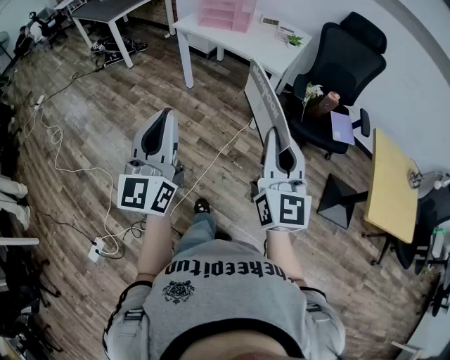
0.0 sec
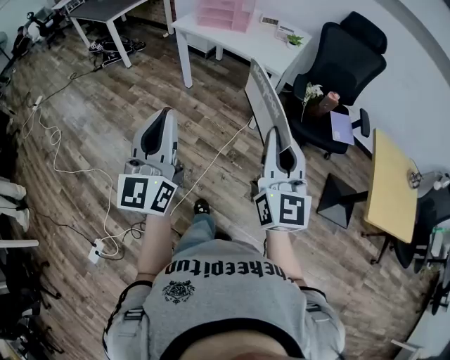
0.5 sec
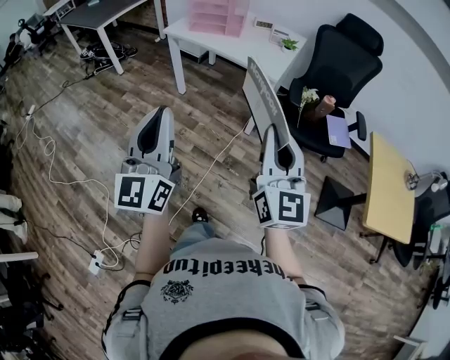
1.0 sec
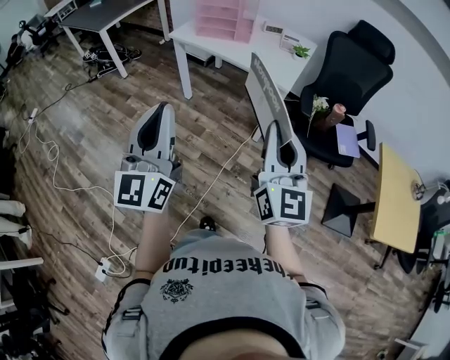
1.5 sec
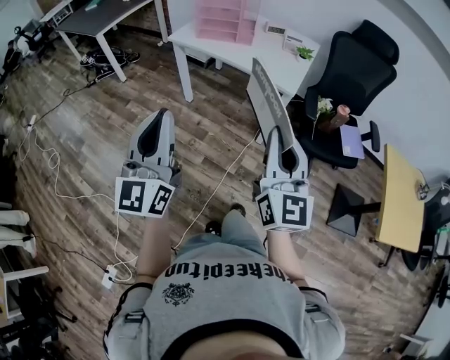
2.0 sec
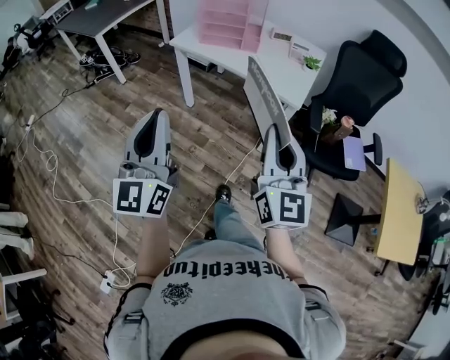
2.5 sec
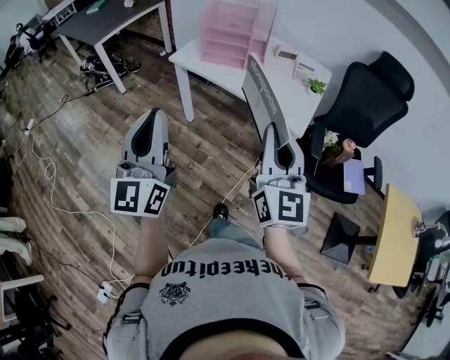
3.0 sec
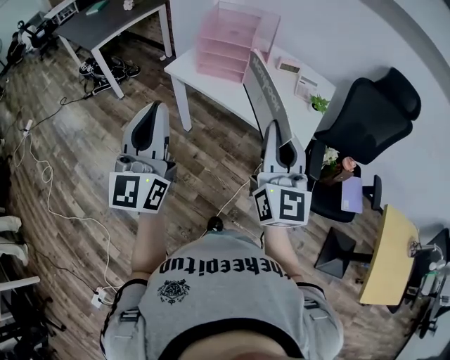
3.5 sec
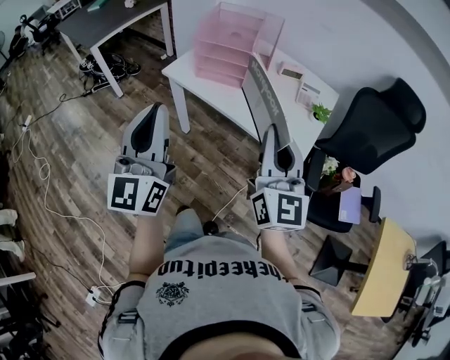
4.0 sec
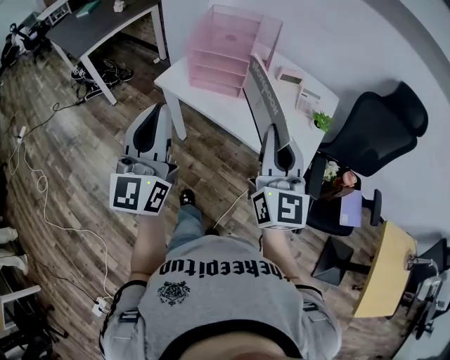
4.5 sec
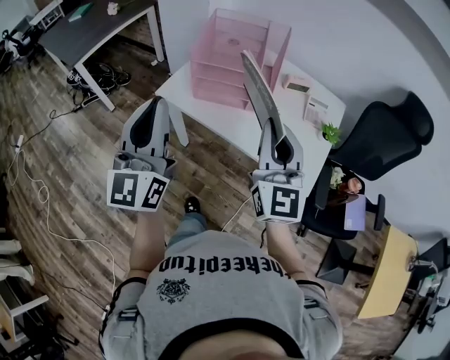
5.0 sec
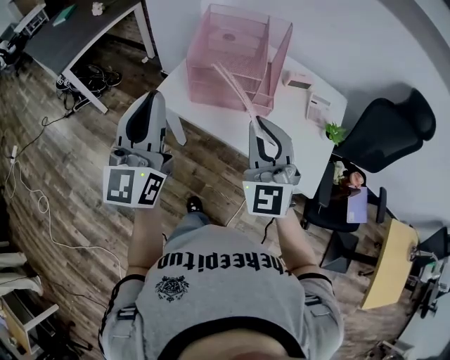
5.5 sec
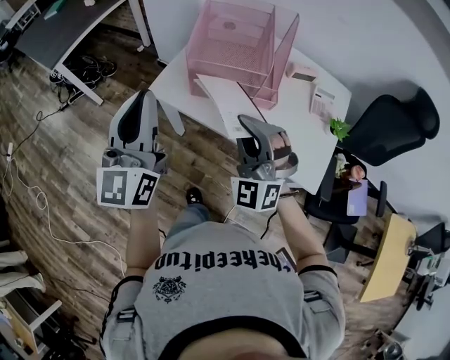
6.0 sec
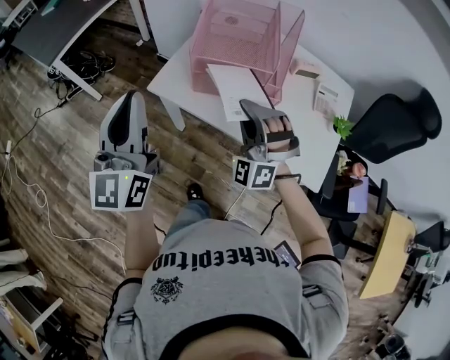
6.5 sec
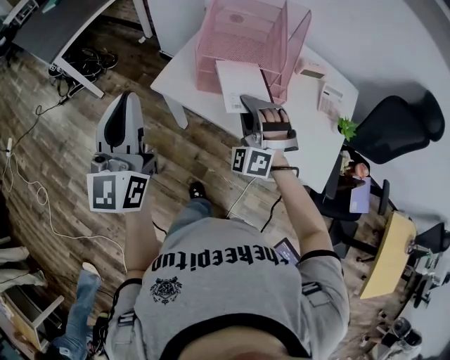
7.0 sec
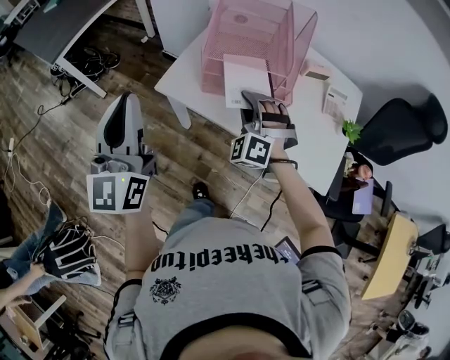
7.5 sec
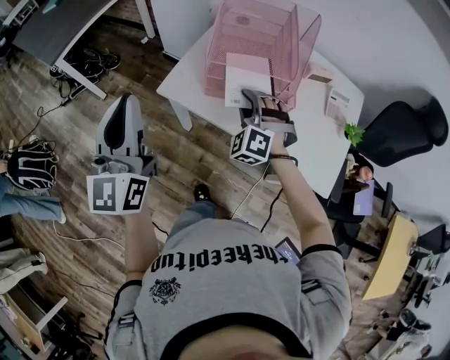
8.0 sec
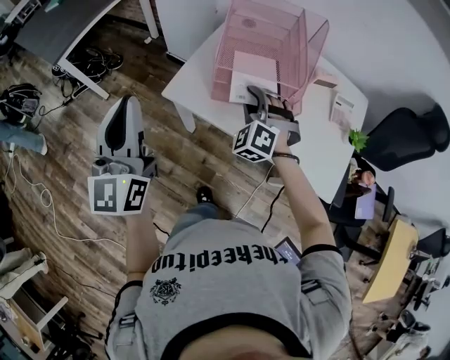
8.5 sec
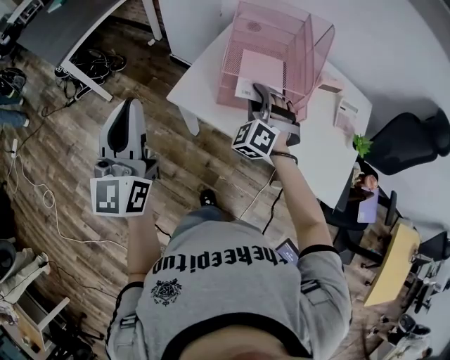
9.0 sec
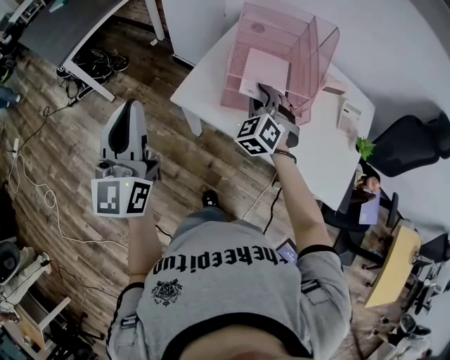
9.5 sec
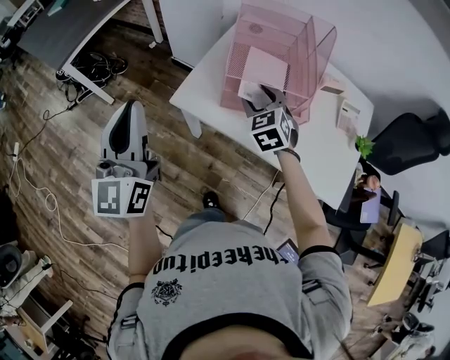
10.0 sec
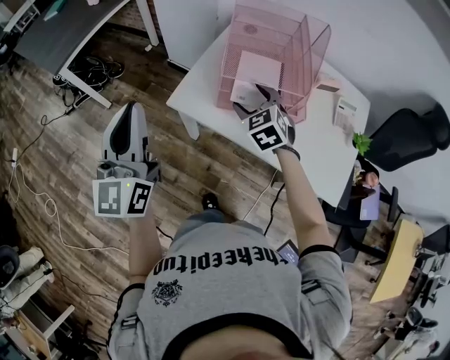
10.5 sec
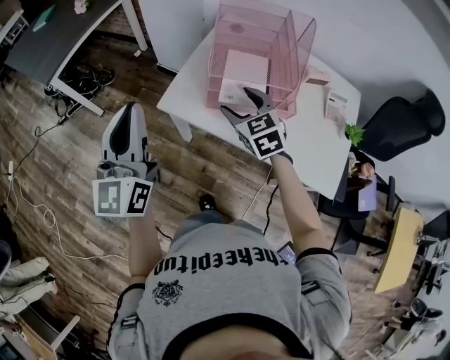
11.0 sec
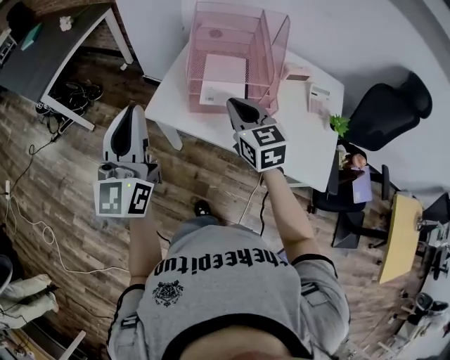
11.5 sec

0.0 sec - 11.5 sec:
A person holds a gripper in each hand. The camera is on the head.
0.0 sec - 2.0 sec: The two grippers go roughly 20 cm forward and to the left.
2.0 sec - 4.0 sec: Both grippers move forward, about 35 cm.
4.0 sec - 6.0 sec: The right gripper goes approximately 30 cm forward, to the left and downward, and rotates around the line of its fingers by some 60 degrees, counterclockwise from behind. The left gripper goes roughly 30 cm forward.
6.0 sec - 7.5 sec: The left gripper travels to the left by some 5 cm, while the right gripper shifts roughly 15 cm forward and downward, and rotates about 30 degrees.
7.5 sec - 9.5 sec: The right gripper shifts roughly 10 cm forward, and rotates some 20 degrees. Meanwhile the left gripper is displaced to the left by about 5 cm.
9.5 sec - 11.5 sec: The left gripper shifts some 5 cm to the right. The right gripper moves backward and upward, approximately 10 cm, rotates around the line of its fingers by roughly 40 degrees, clockwise from behind, and opens, then closes once more.

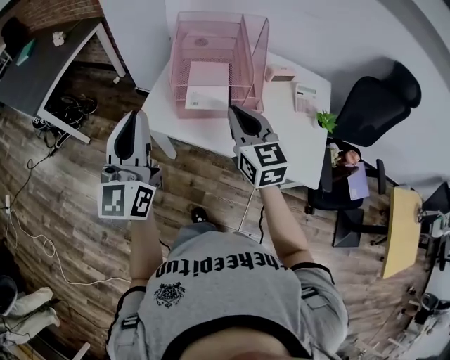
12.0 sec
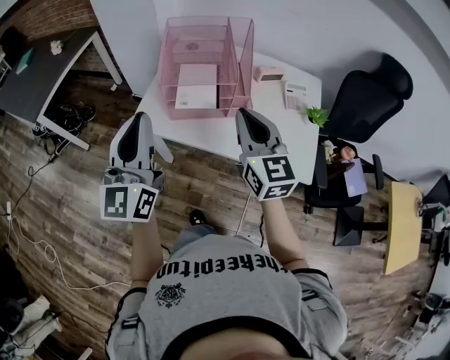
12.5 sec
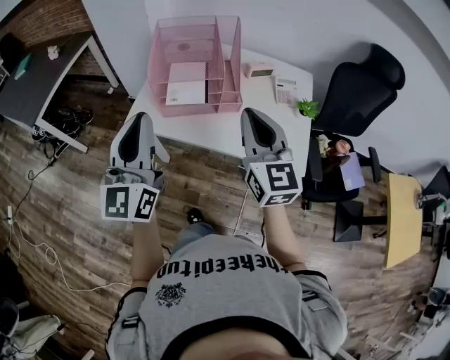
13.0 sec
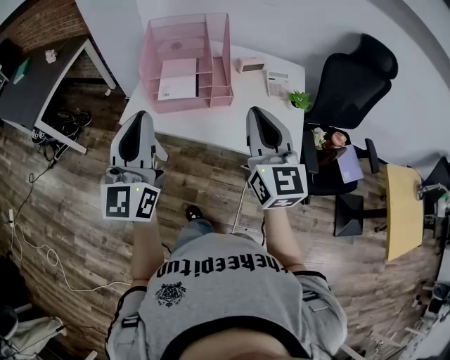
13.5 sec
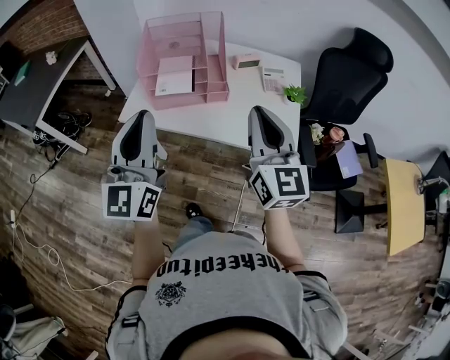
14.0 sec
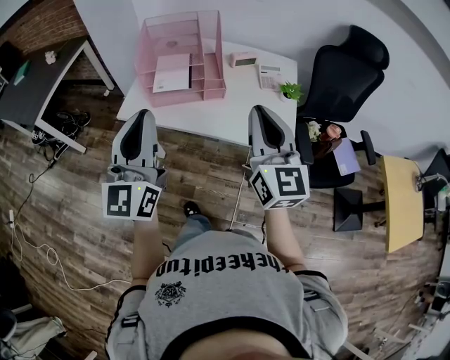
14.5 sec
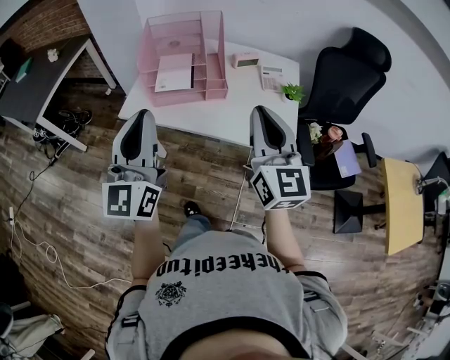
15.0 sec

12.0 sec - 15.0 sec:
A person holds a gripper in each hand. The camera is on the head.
12.0 sec - 13.5 sec: The right gripper heads backward, to the right and upward, covering some 20 cm; the left gripper heads to the right and backward, covering about 15 cm.
13.5 sec - 15.0 sec: The right gripper goes about 5 cm backward. The left gripper moves about 5 cm.

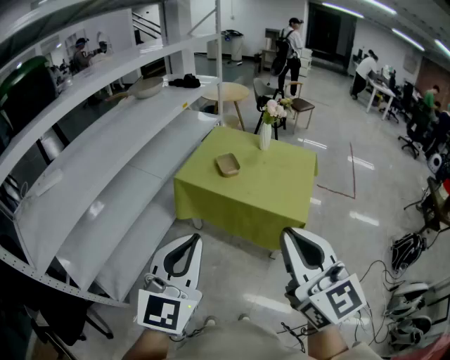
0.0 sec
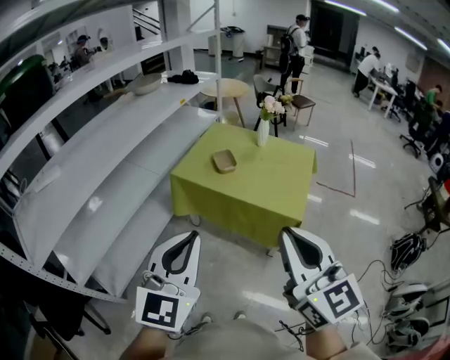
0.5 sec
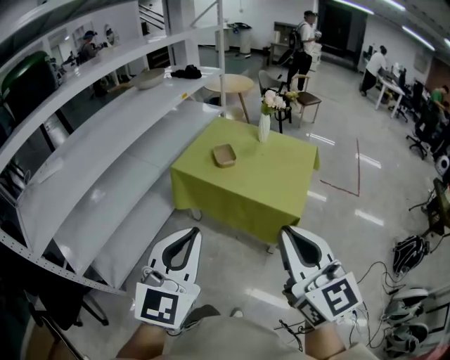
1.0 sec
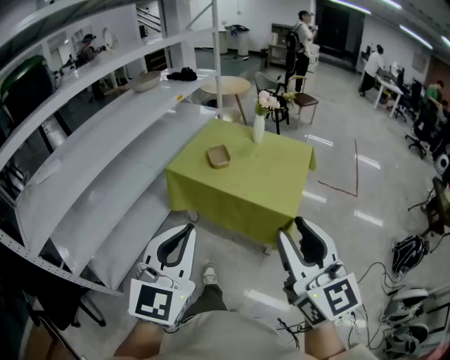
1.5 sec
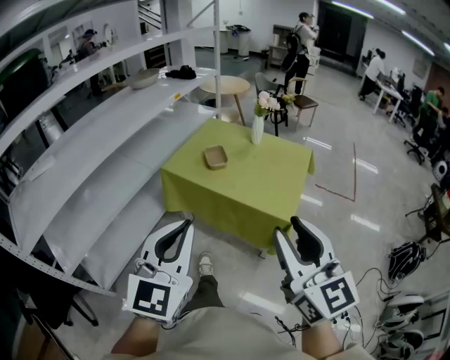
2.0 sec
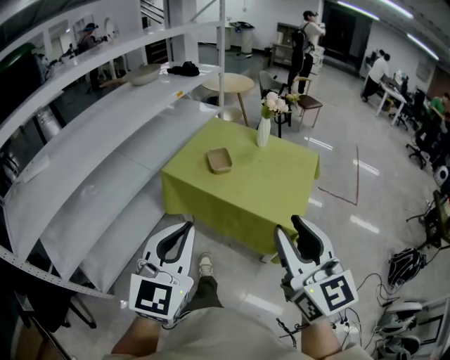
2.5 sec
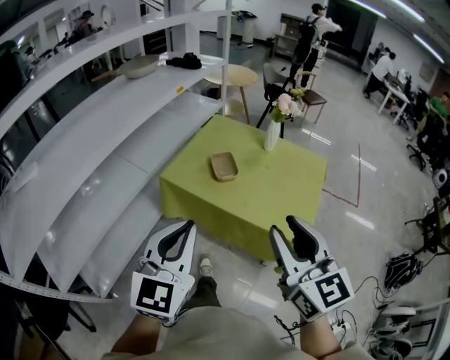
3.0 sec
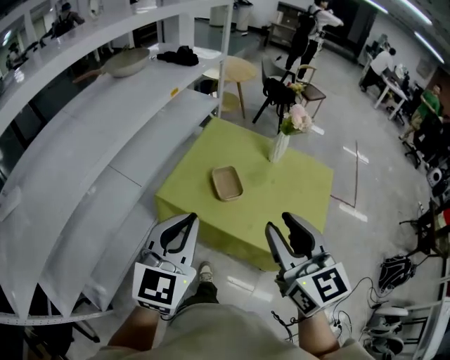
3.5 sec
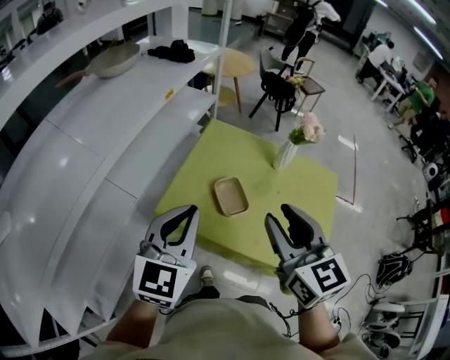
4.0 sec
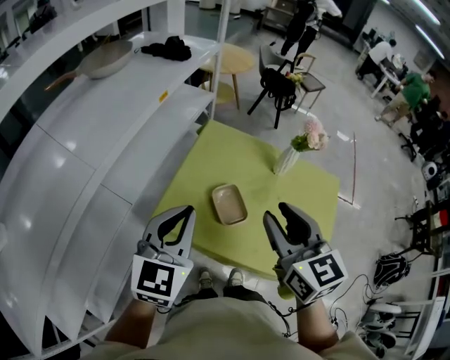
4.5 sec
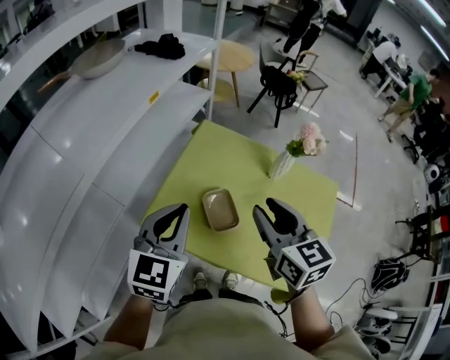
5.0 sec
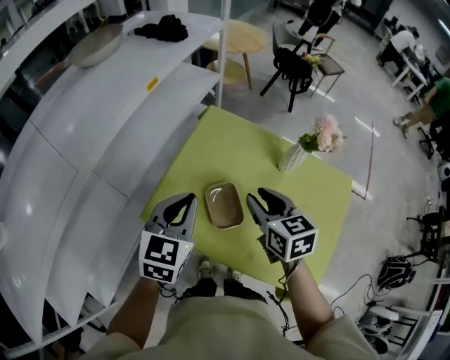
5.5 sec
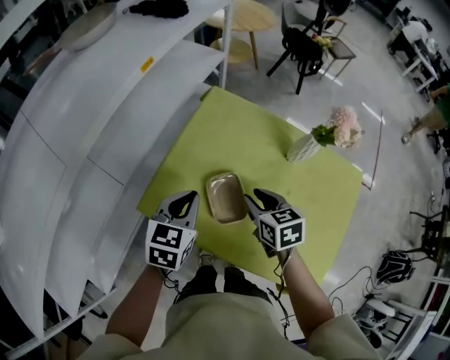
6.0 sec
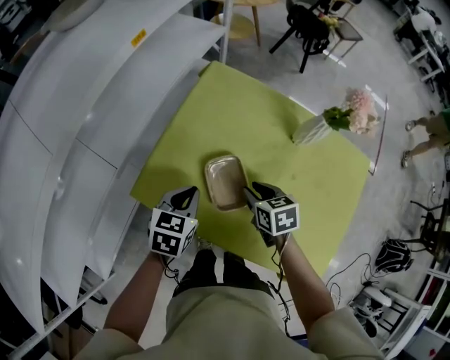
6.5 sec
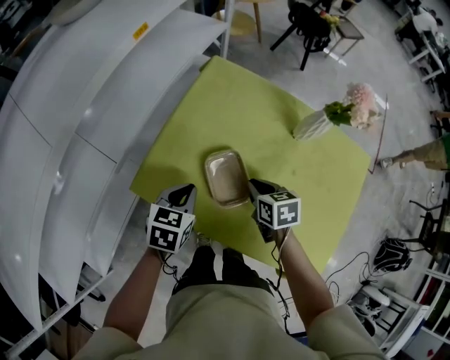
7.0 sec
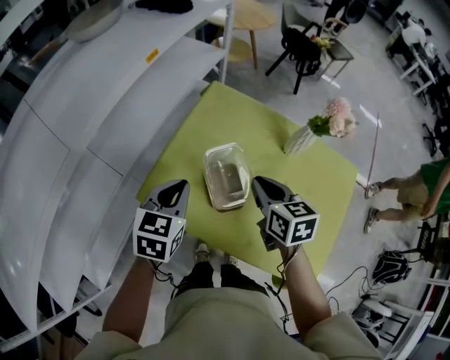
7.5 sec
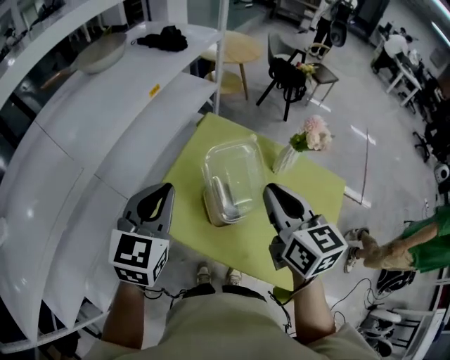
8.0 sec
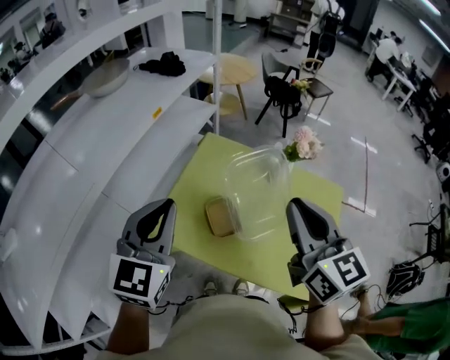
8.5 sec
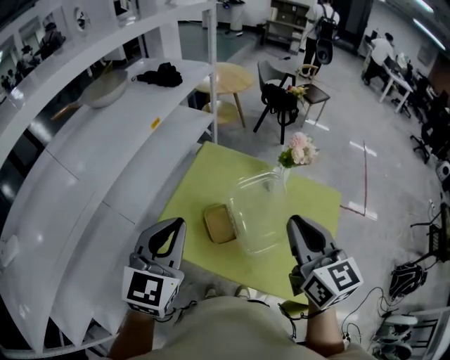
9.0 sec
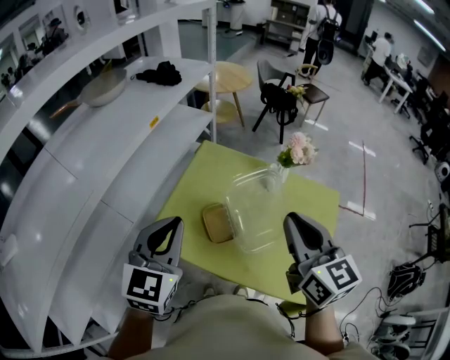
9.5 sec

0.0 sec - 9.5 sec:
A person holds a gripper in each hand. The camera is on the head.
0.0 sec - 2.0 sec: Both grippers move to the right, roughly 10 cm. The right gripper opens its fingers.
2.0 sec - 4.0 sec: Both grippers are carried forward, some 50 cm.
4.0 sec - 5.5 sec: The right gripper is displaced downward and forward by some 25 cm, and rotates about 20 degrees. Meanwhile the left gripper goes some 20 cm forward and downward.
5.5 sec - 7.5 sec: The right gripper moves approximately 20 cm downward and comes back, and closes its fingers. Meanwhile the left gripper is displaced downward by some 10 cm.
7.5 sec - 9.5 sec: Both grippers travel together upward and backward, approximately 25 cm. The right gripper turns by about 30 degrees. The left gripper swivels approximately 20 degrees.

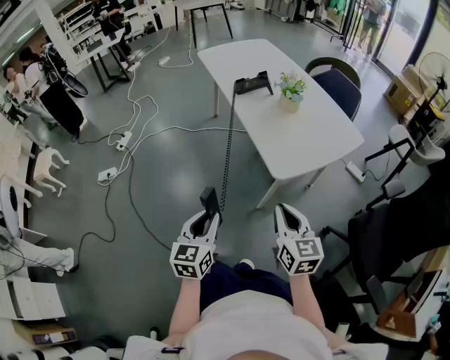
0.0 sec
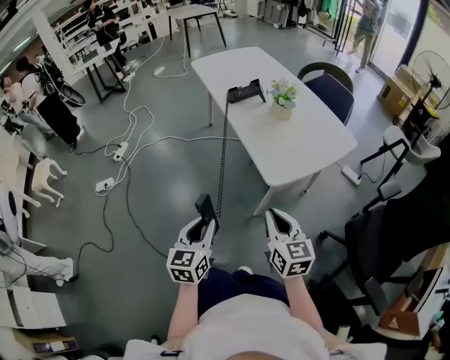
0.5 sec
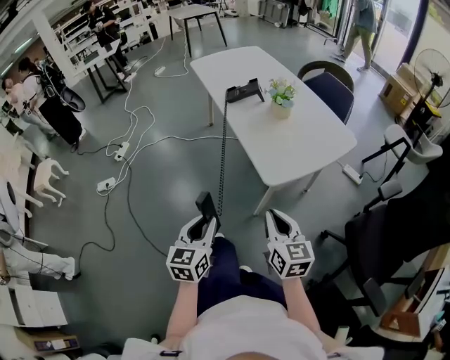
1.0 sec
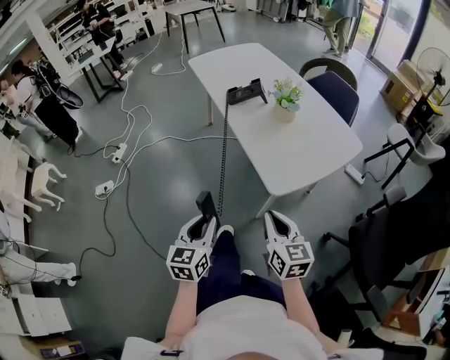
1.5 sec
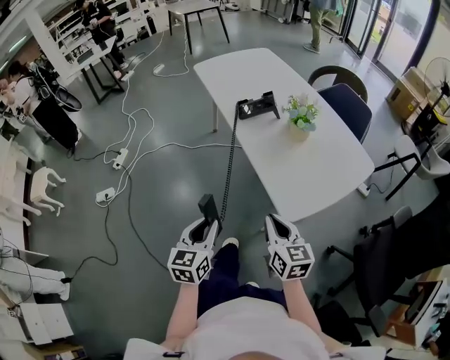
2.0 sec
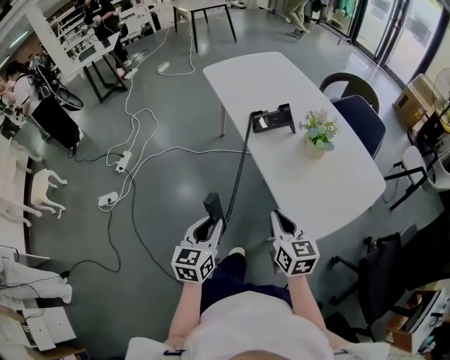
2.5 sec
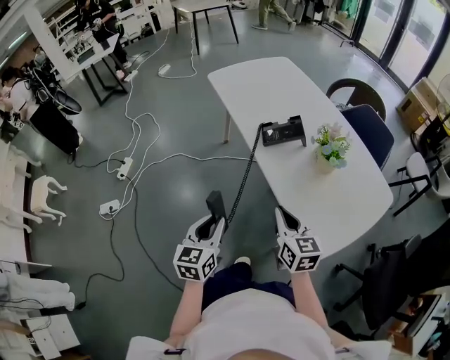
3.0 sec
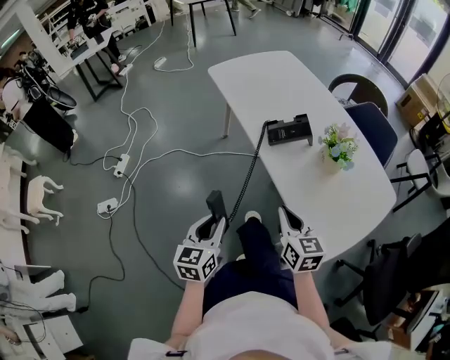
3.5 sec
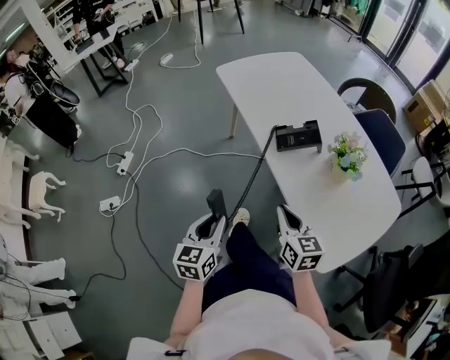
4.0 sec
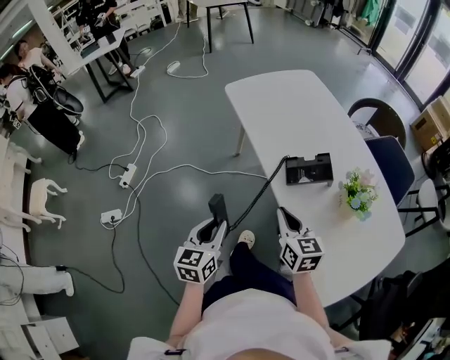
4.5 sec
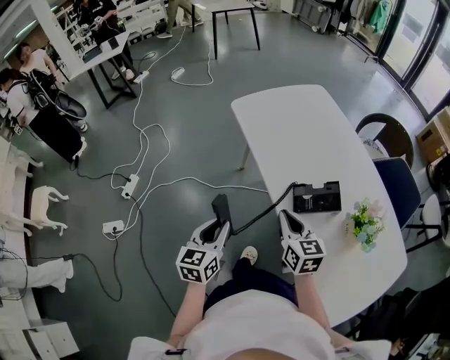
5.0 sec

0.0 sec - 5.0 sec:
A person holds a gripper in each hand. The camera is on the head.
0.0 sec - 2.5 sec: The two grippers go about 25 cm forward.
2.5 sec - 5.0 sec: Both grippers move forward, approximately 35 cm.
